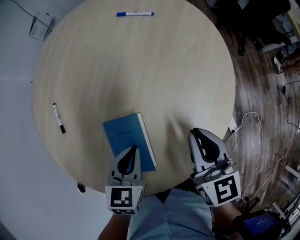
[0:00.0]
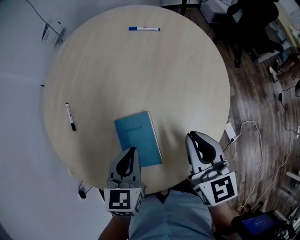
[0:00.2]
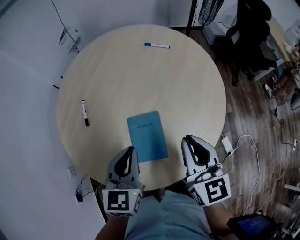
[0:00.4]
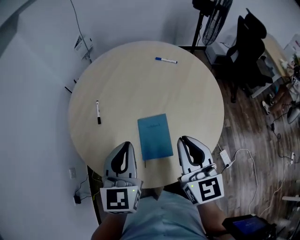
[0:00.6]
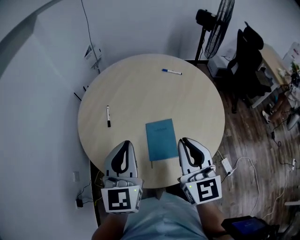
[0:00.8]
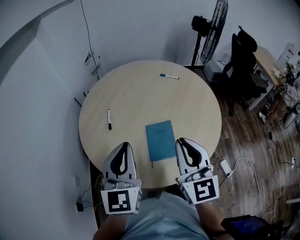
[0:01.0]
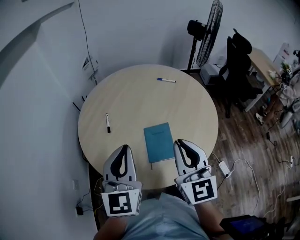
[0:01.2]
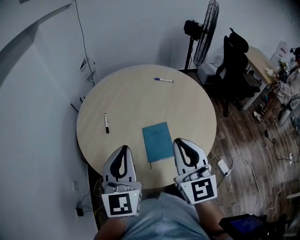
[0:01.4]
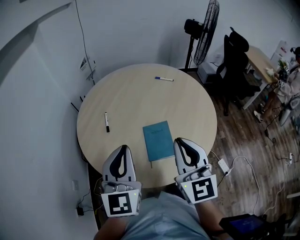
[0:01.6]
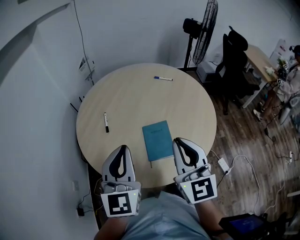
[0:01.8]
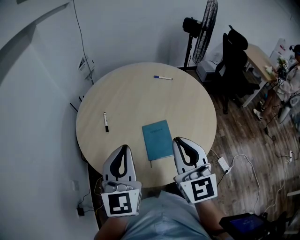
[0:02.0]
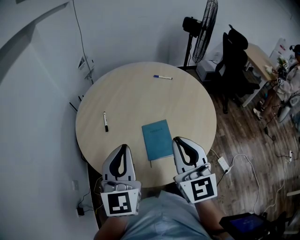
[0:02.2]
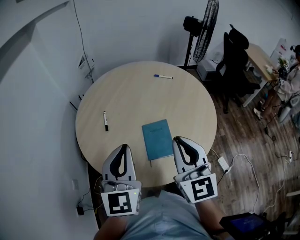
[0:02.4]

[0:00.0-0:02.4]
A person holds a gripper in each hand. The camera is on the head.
0:00.0 to 0:01.2: Both grippers move upward, to the left and backward, roughly 40 cm. The left gripper angles its fingers upward, by about 50 degrees; the right gripper turns by some 30 degrees.
0:01.2 to 0:02.4: Neither gripper changes place.

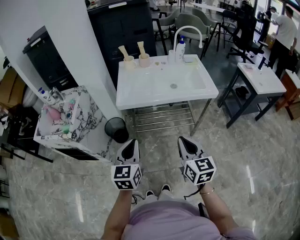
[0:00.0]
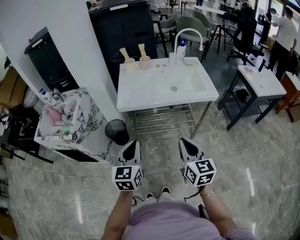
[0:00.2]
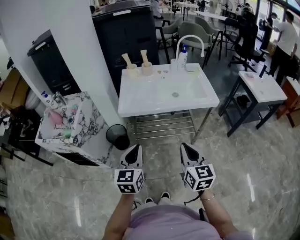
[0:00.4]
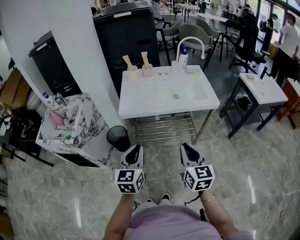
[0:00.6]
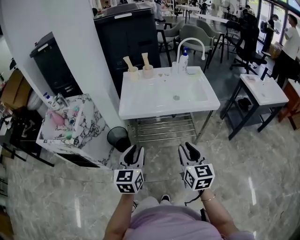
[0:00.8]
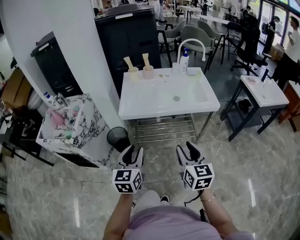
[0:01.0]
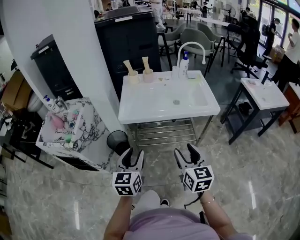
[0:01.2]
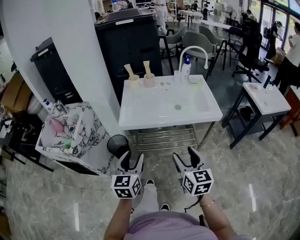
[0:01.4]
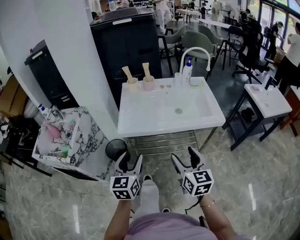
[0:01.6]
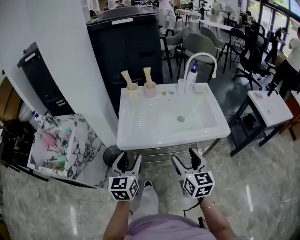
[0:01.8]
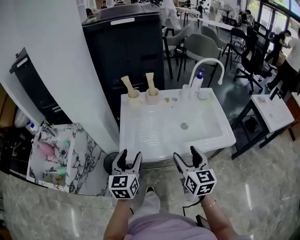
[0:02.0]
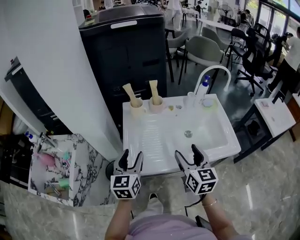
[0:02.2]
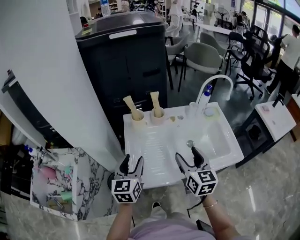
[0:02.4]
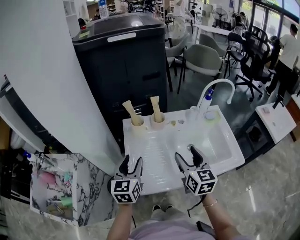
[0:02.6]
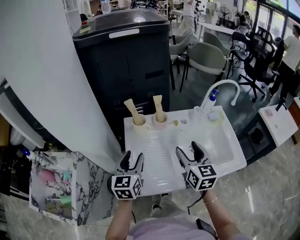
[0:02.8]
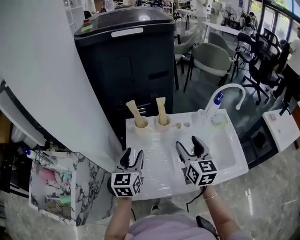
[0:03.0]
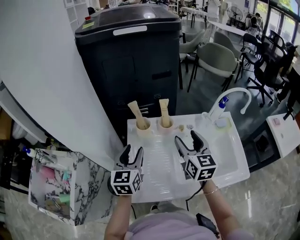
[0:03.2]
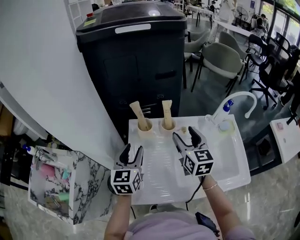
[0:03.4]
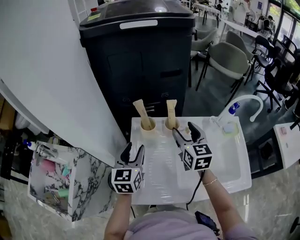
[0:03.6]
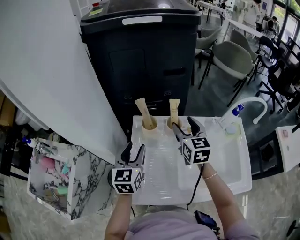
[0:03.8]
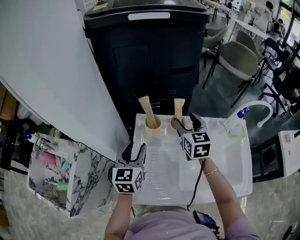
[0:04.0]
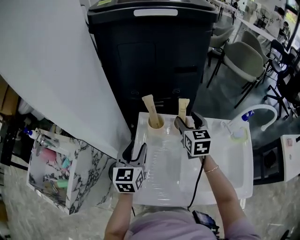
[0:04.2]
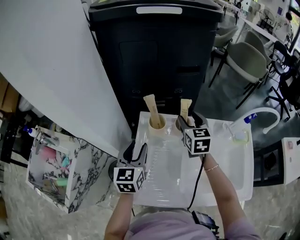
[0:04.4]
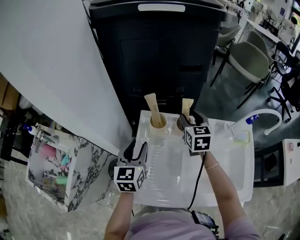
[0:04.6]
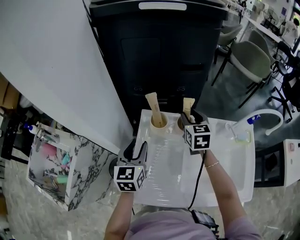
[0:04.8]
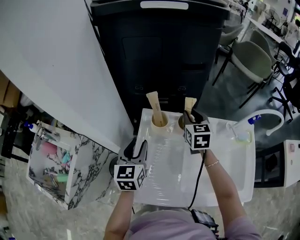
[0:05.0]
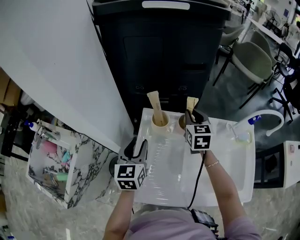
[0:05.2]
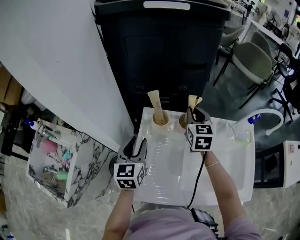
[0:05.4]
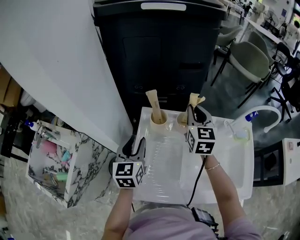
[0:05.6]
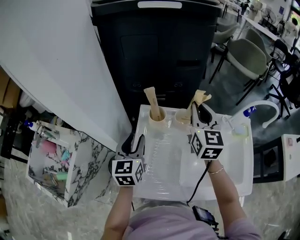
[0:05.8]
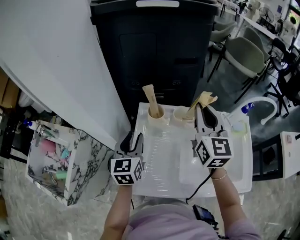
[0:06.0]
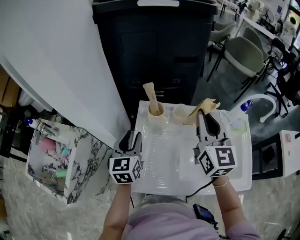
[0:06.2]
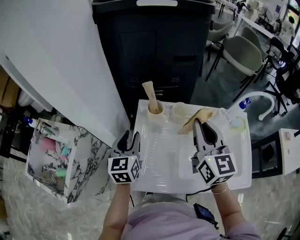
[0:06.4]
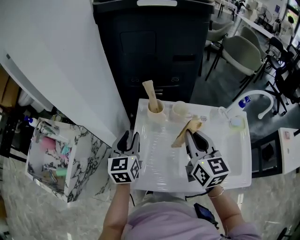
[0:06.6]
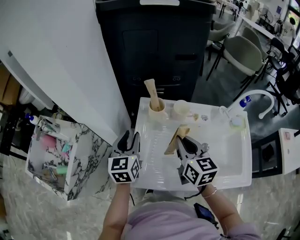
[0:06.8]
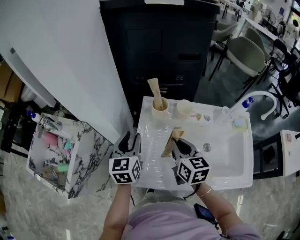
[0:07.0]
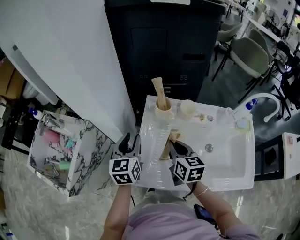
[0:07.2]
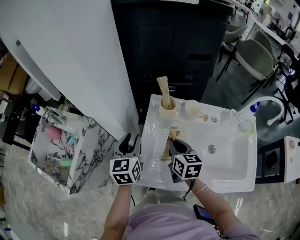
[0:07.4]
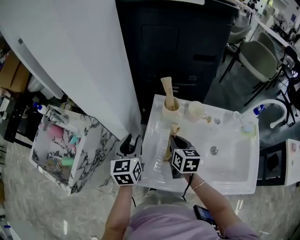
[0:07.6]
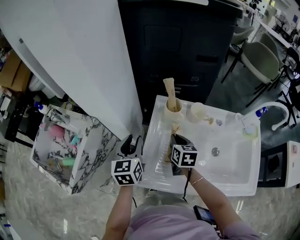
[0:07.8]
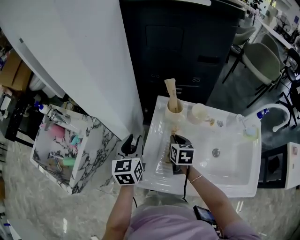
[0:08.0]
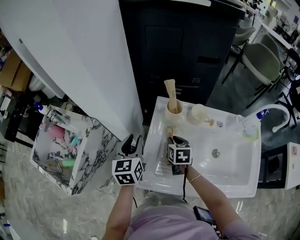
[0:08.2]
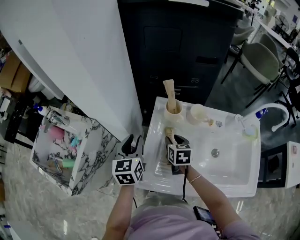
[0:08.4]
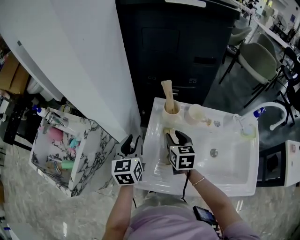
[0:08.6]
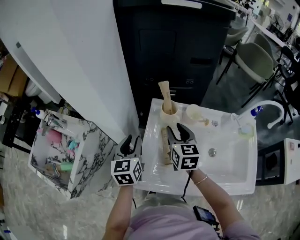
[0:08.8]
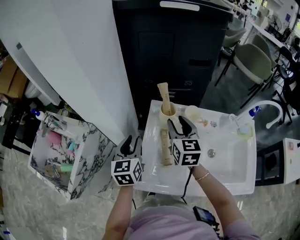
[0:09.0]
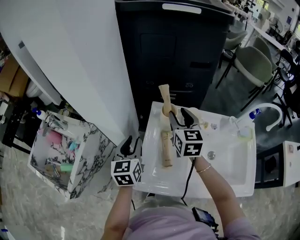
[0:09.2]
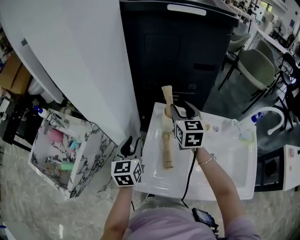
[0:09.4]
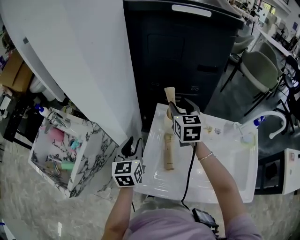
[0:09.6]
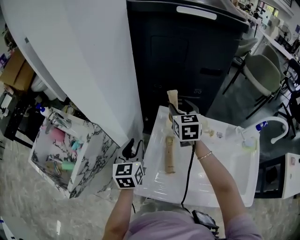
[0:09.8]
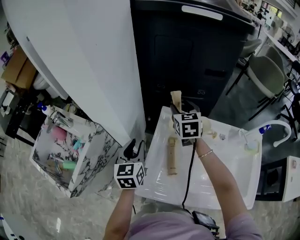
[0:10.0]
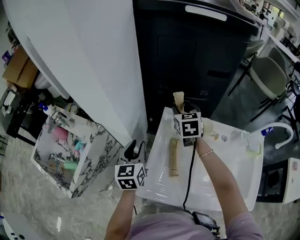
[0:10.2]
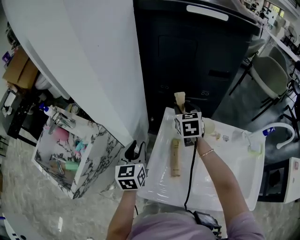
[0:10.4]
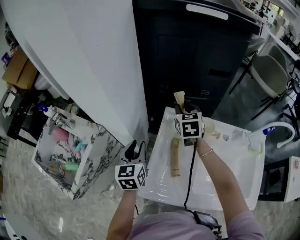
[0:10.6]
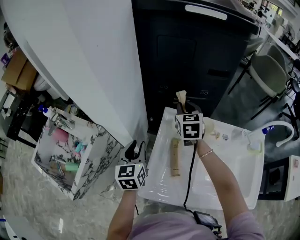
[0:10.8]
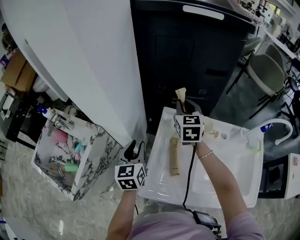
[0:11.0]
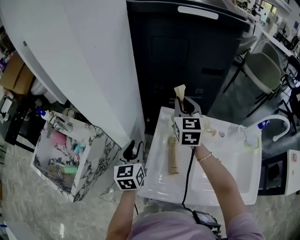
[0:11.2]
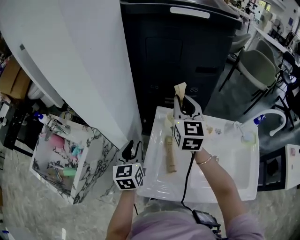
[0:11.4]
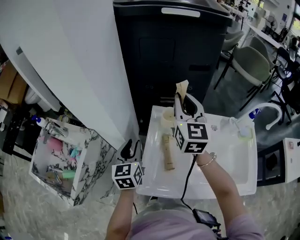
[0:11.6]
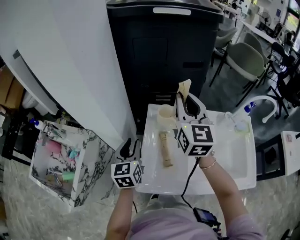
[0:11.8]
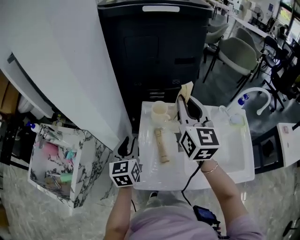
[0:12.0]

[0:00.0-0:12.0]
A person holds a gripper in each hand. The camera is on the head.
0:00.0 to 0:01.6: Both grippers move forward, roughly 10 cm. The right gripper opens its fingers. Meanwhile the left gripper opens its fingers.
0:01.6 to 0:03.0: Both grippers move forward, roughly 40 cm.
0:03.0 to 0:04.4: The right gripper moves forward, roughly 20 cm; the left gripper moves forward, about 5 cm.
0:04.4 to 0:06.0: The right gripper goes approximately 15 cm upward and backward, changes its angle by roughly 20 degrees, and closes.
0:06.0 to 0:07.6: The left gripper moves to the left, approximately 5 cm, while the right gripper goes approximately 25 cm downward and to the left, and tips its fingers downward by some 30 degrees.
0:07.6 to 0:09.0: The right gripper is displaced upward and forward by about 10 cm, turns by approximately 20 degrees, and opens up.
0:09.0 to 0:10.4: The right gripper shifts about 15 cm forward.
0:10.4 to 0:12.0: The left gripper shifts by roughly 5 cm, while the right gripper travels upward and backward by about 25 cm, tilts its fingers some 30 degrees upward, and closes up.

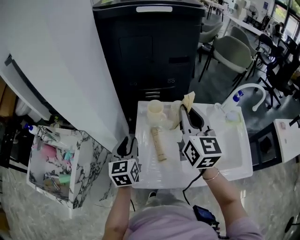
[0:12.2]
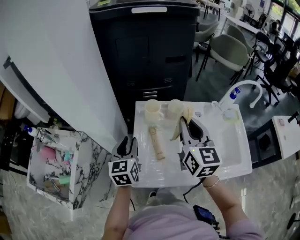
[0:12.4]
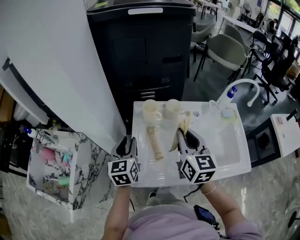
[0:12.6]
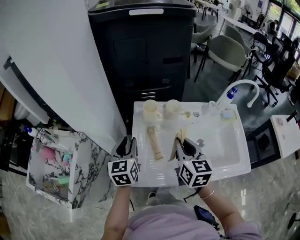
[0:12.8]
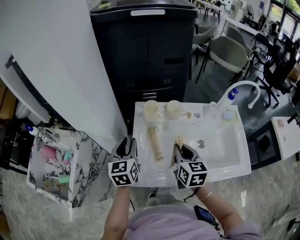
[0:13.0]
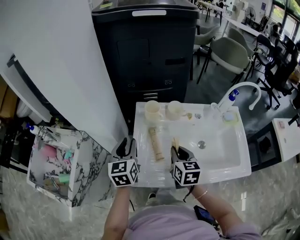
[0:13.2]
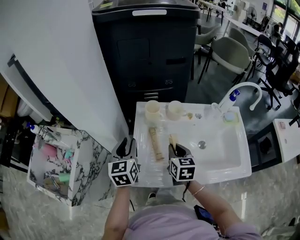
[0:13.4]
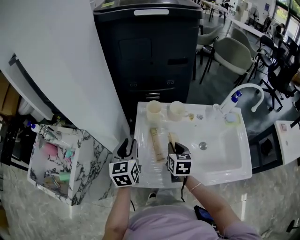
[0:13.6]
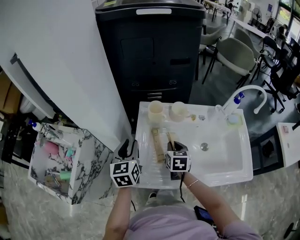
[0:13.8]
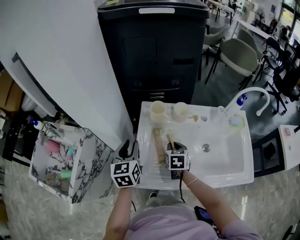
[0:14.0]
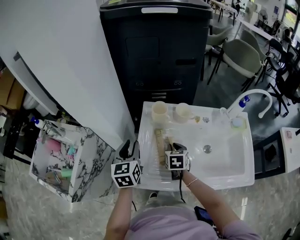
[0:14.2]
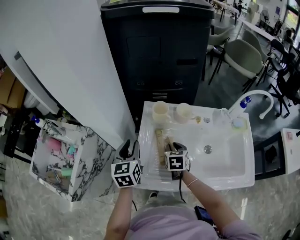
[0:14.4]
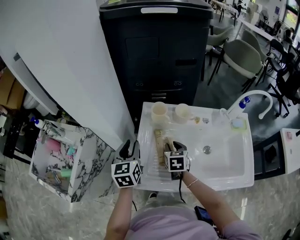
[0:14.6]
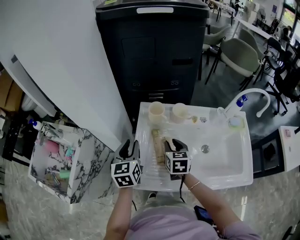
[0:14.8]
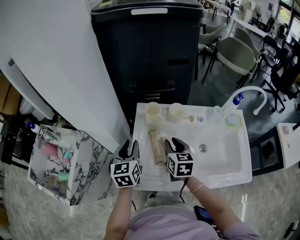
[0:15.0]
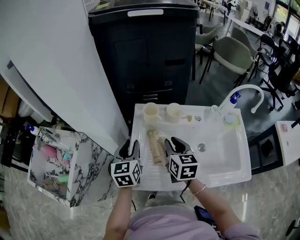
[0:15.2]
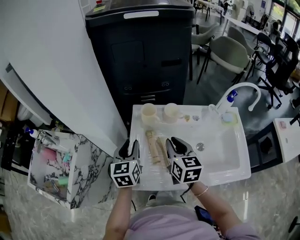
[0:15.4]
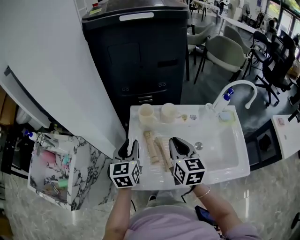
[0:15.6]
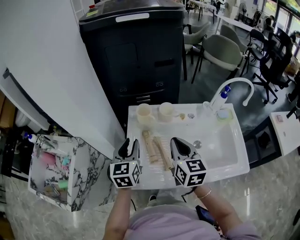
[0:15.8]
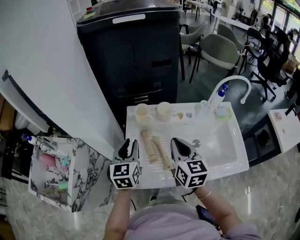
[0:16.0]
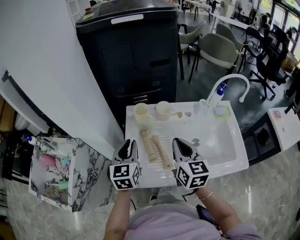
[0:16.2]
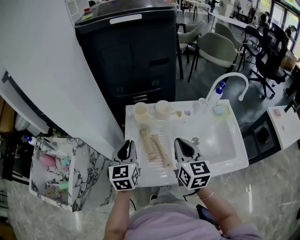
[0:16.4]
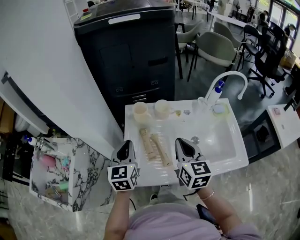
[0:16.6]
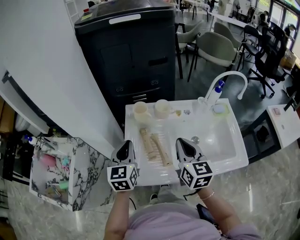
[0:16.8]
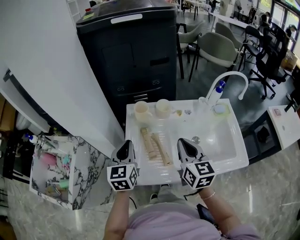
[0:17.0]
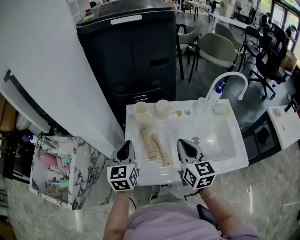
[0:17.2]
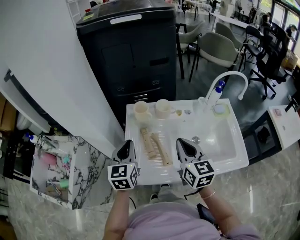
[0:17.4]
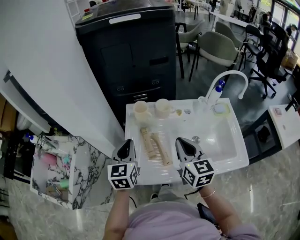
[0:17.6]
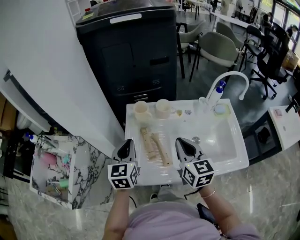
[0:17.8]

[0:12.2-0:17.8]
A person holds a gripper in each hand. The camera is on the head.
0:12.2 to 0:13.6: The right gripper is displaced downward by about 25 cm, and points its fingers some 30 degrees further downward.
0:15.0 to 0:16.4: The right gripper goes some 15 cm upward, backward and to the right, and closes up; the left gripper ends up approximately 5 cm from where it was.
0:16.4 to 0:17.8: There are only small adjustments of the grippers.

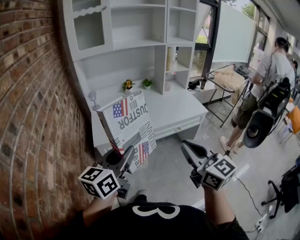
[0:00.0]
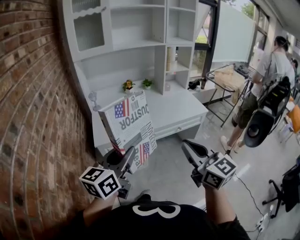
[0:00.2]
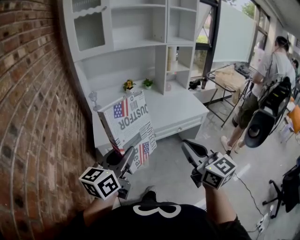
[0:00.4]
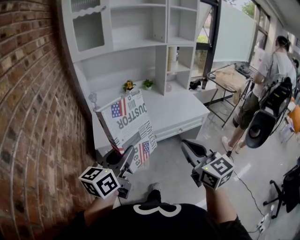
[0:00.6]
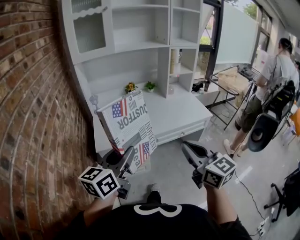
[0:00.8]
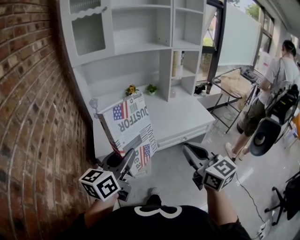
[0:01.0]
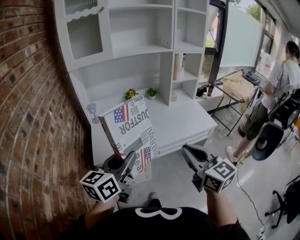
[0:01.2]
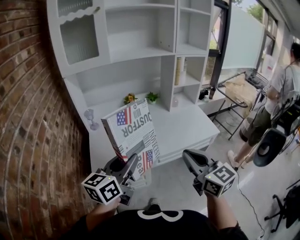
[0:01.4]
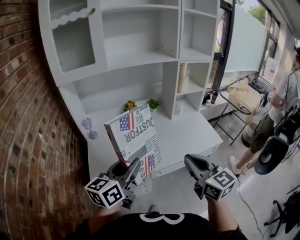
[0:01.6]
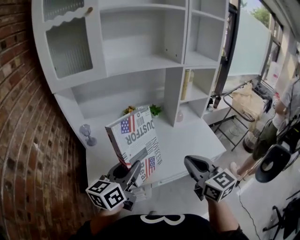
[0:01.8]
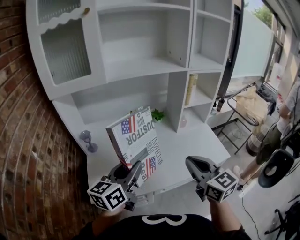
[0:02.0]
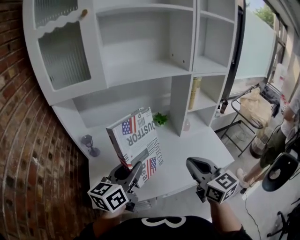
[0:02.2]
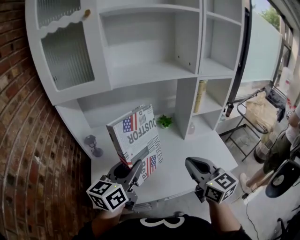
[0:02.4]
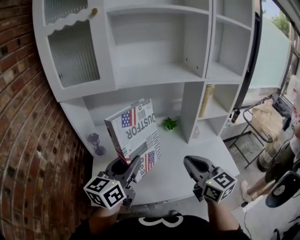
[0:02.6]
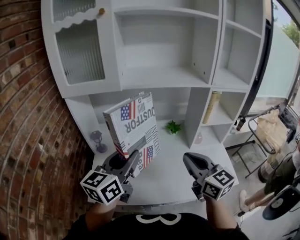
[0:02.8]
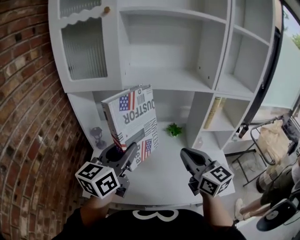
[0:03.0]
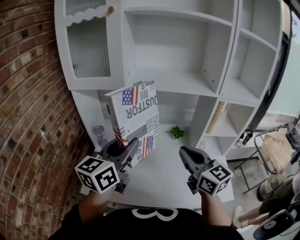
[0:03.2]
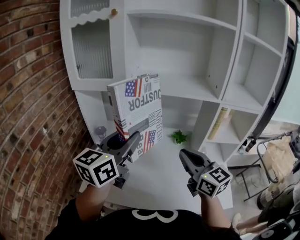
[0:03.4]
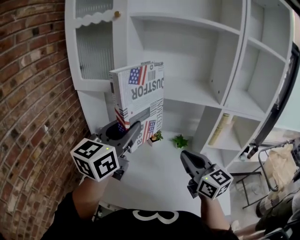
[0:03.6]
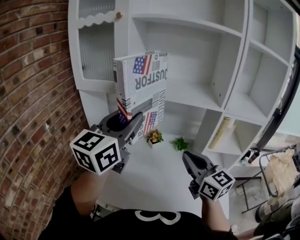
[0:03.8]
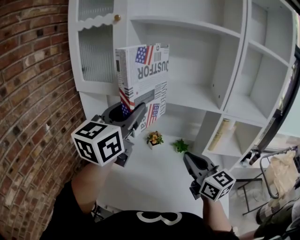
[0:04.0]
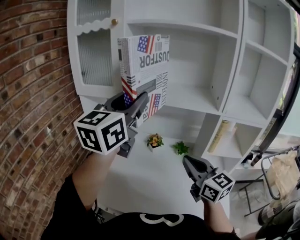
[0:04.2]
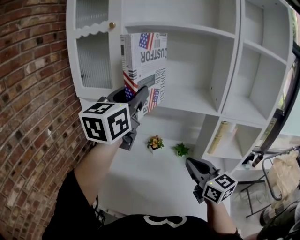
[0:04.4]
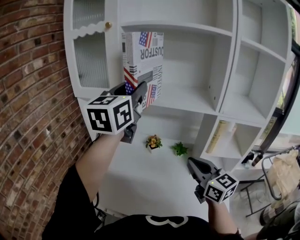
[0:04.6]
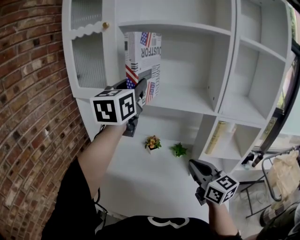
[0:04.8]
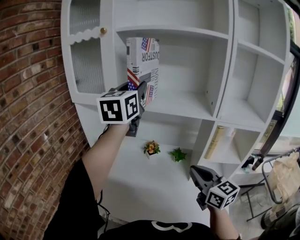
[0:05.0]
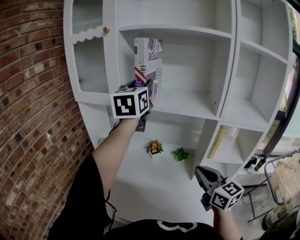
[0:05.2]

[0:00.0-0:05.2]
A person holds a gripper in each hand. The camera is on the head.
0:00.0 to 0:01.8: The grippers both shift forward by roughly 30 cm.
0:01.8 to 0:03.4: The left gripper moves forward and upward, about 20 cm, and swivels approximately 30 degrees. Meanwhile the right gripper goes some 20 cm forward, and changes its angle by approximately 30 degrees.
0:03.4 to 0:05.2: The left gripper is displaced forward, upward and to the right by approximately 25 cm, and turns by some 30 degrees. The right gripper goes roughly 10 cm to the right.
